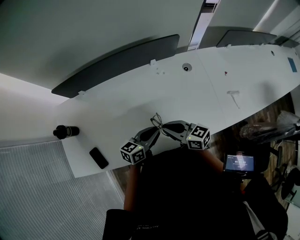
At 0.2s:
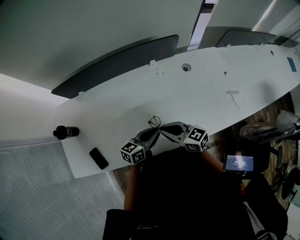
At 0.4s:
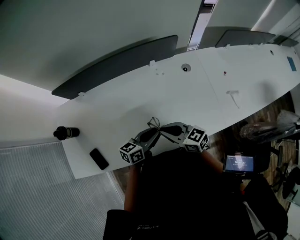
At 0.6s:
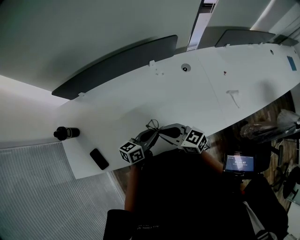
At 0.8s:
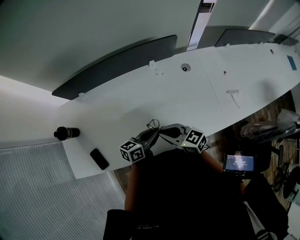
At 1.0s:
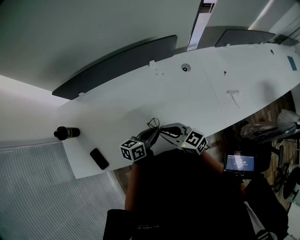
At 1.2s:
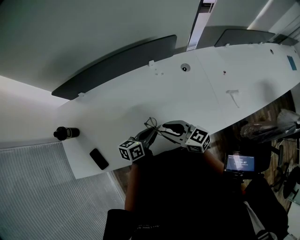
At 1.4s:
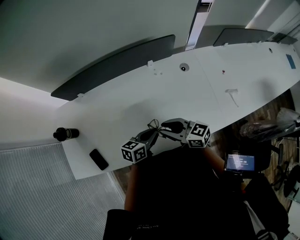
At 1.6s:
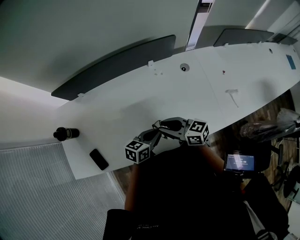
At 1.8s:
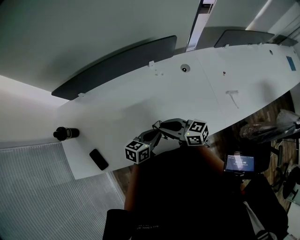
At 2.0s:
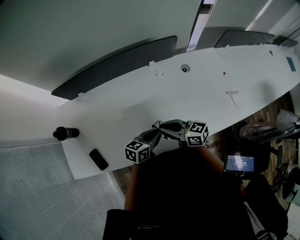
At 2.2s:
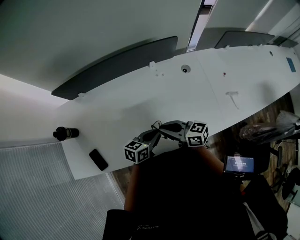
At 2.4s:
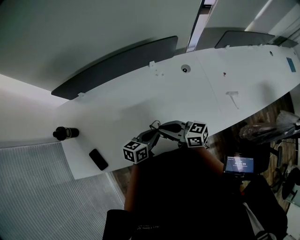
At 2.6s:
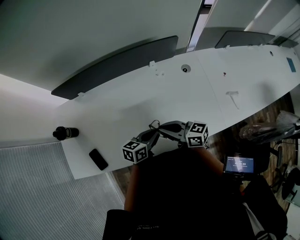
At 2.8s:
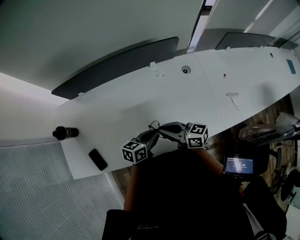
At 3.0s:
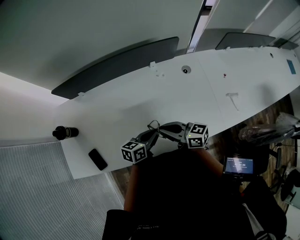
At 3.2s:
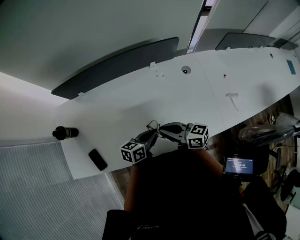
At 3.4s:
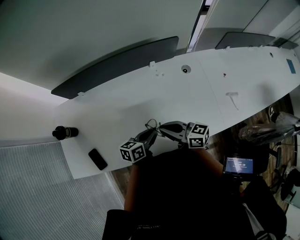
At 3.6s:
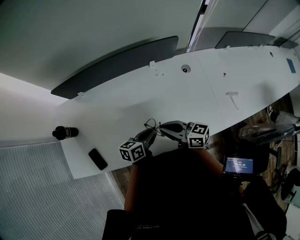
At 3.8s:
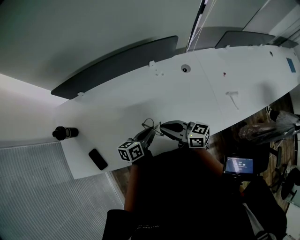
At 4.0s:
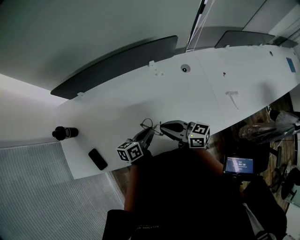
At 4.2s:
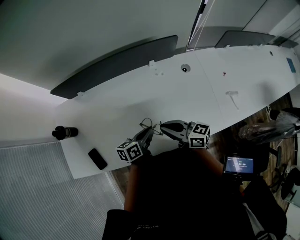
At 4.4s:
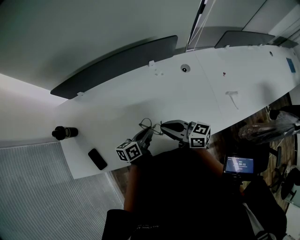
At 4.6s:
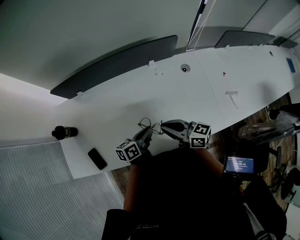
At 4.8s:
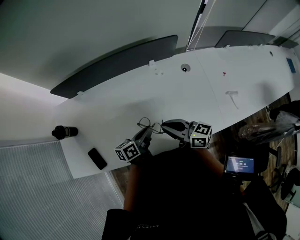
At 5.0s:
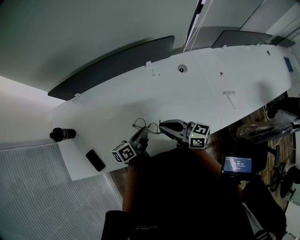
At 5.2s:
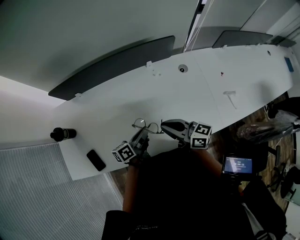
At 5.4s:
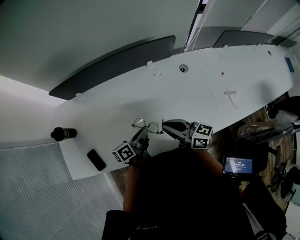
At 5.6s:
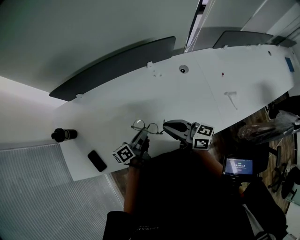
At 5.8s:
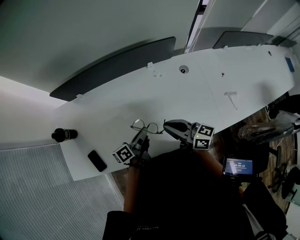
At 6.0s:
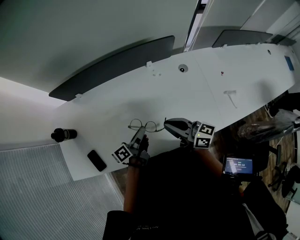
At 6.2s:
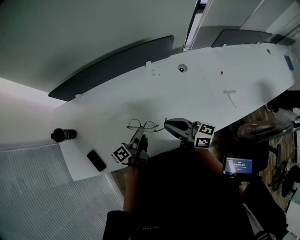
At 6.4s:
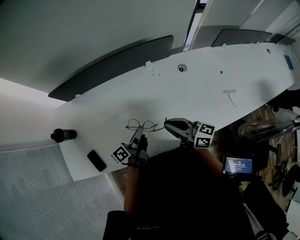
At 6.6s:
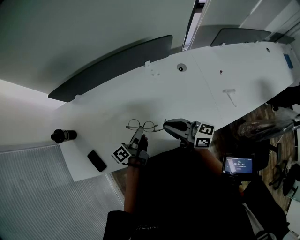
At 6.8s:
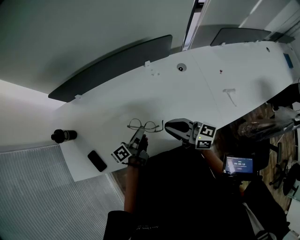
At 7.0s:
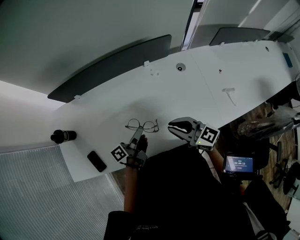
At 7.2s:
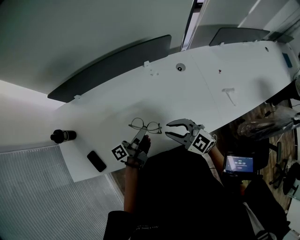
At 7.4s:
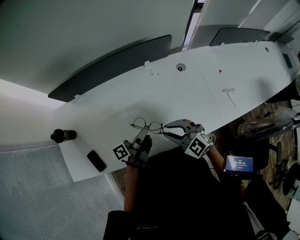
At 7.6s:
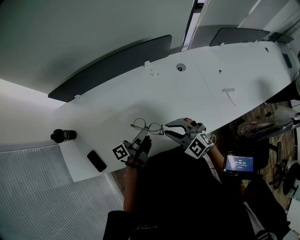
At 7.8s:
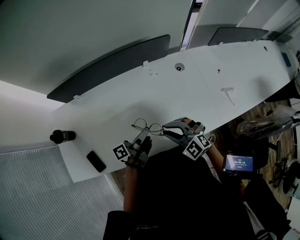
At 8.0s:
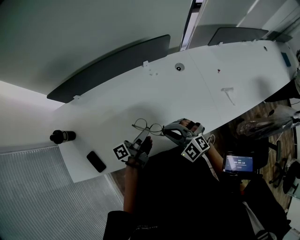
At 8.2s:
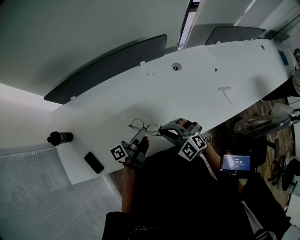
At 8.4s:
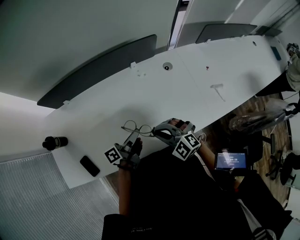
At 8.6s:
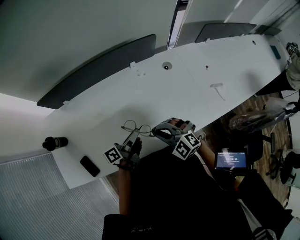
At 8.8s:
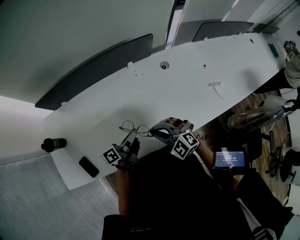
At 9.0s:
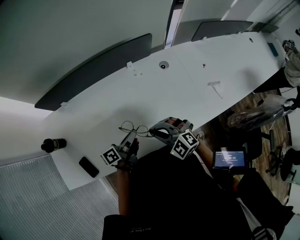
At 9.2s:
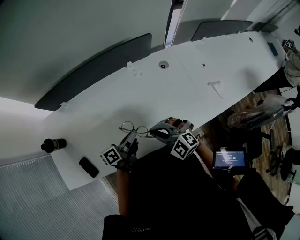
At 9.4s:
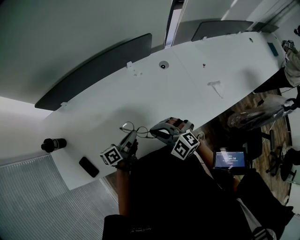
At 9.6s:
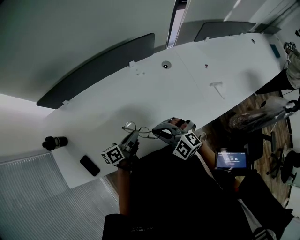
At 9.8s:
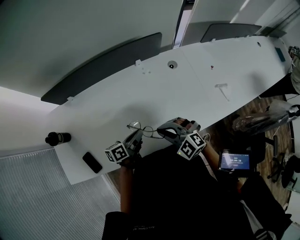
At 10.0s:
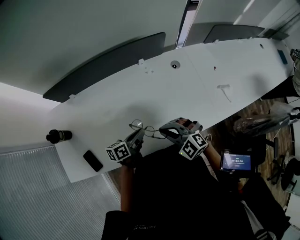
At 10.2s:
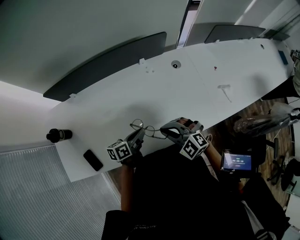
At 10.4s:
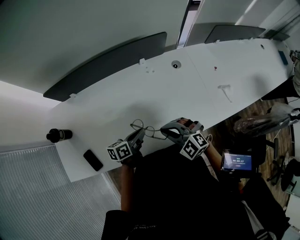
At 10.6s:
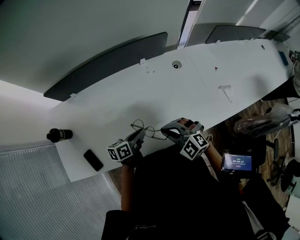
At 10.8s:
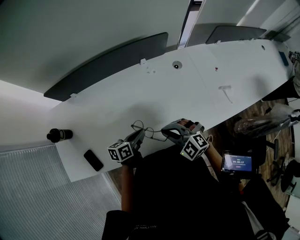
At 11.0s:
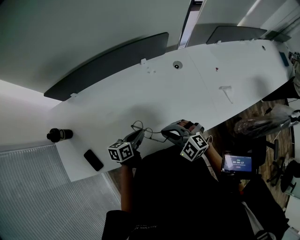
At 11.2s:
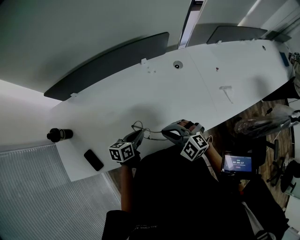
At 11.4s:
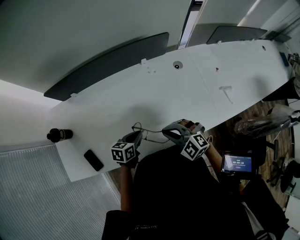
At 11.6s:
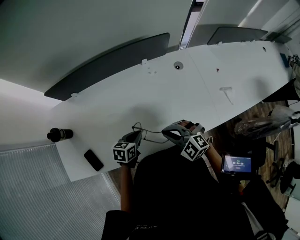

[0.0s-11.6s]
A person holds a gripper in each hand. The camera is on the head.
0.0s to 1.4s: There are only small adjustments of the grippers.
1.4s to 2.8s: The right gripper closes.
2.8s to 4.4s: There are only small adjustments of the grippers.
4.4s to 5.8s: The left gripper changes its angle by roughly 20 degrees.
5.8s to 7.2s: The right gripper changes place by about 5 cm, and rolls counterclockwise, seen from behind, by roughly 50 degrees.
7.2s to 8.8s: The right gripper turns by about 20 degrees.
8.8s to 10.2s: The left gripper swivels approximately 30 degrees.
10.2s to 11.6s: The left gripper swivels some 30 degrees.

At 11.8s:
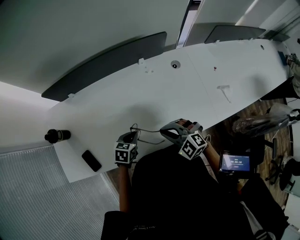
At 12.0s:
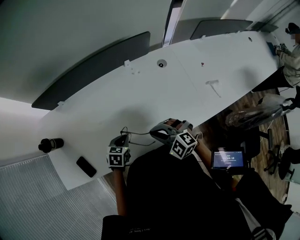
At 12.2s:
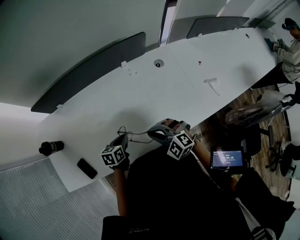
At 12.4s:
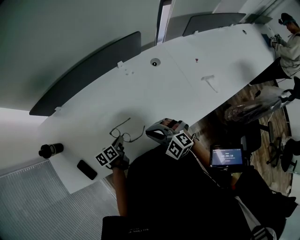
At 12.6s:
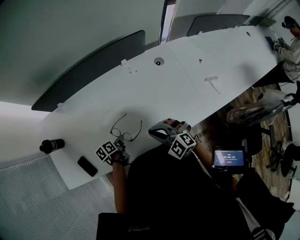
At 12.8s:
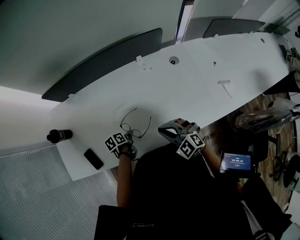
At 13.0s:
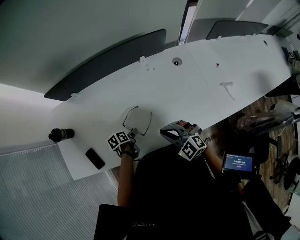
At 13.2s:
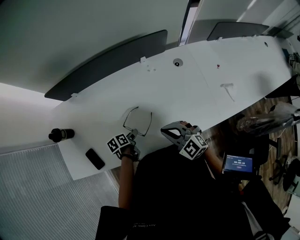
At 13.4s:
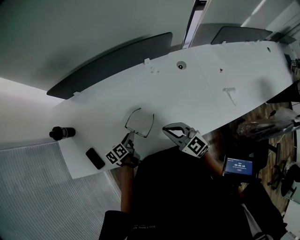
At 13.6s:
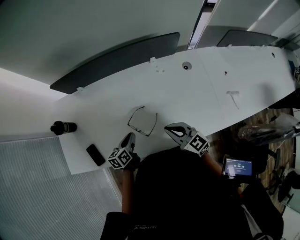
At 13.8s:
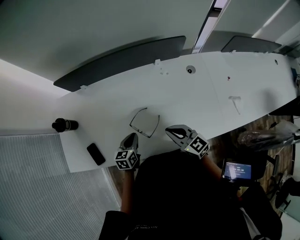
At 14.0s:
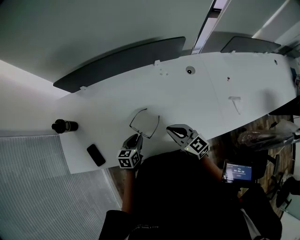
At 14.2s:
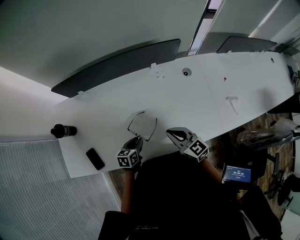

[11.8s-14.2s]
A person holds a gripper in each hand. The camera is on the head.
11.8s to 13.0s: The left gripper shifts roughly 10 cm downward, rotates around the line of its fingers by roughly 50 degrees, counterclockwise from behind, and opens up.
13.0s to 14.2s: The left gripper goes approximately 5 cm upward, and turns by roughly 40 degrees. The right gripper rotates about 40 degrees.

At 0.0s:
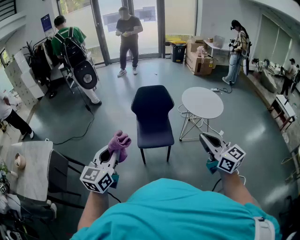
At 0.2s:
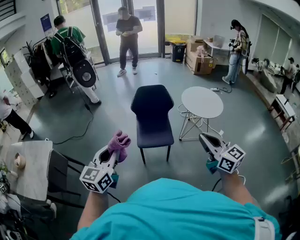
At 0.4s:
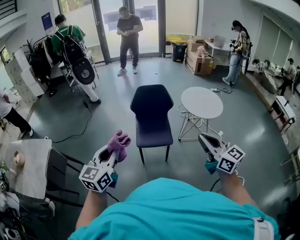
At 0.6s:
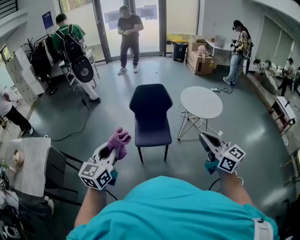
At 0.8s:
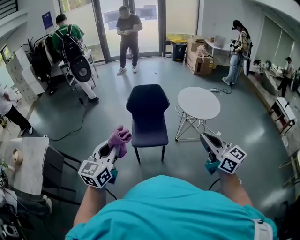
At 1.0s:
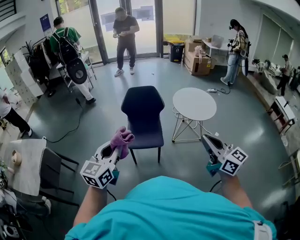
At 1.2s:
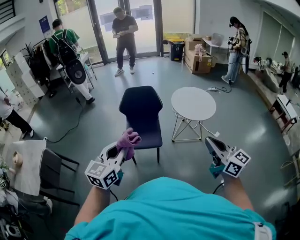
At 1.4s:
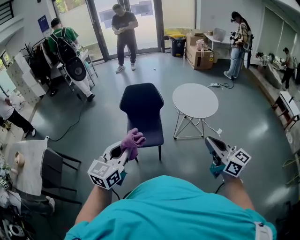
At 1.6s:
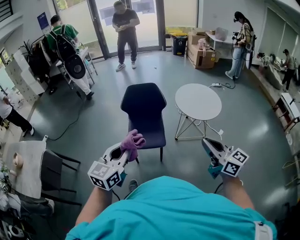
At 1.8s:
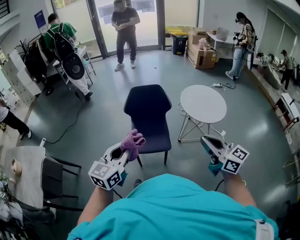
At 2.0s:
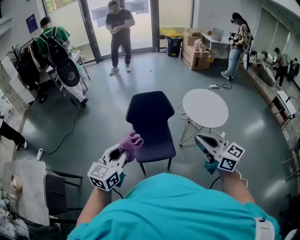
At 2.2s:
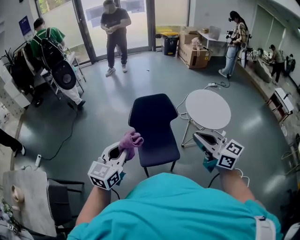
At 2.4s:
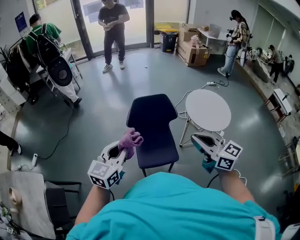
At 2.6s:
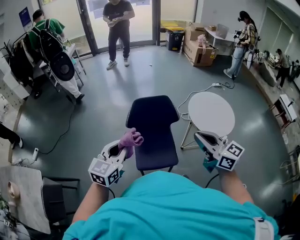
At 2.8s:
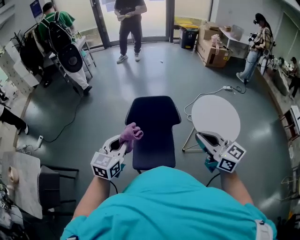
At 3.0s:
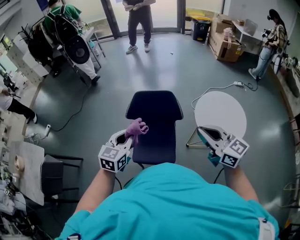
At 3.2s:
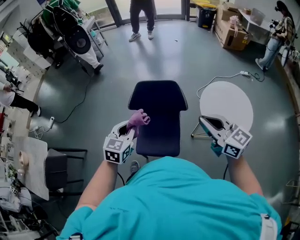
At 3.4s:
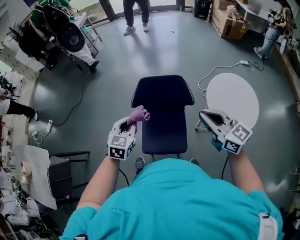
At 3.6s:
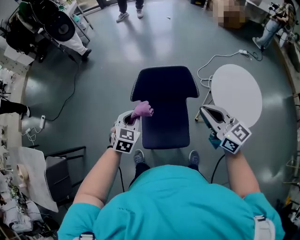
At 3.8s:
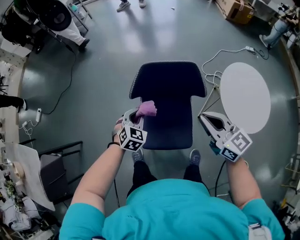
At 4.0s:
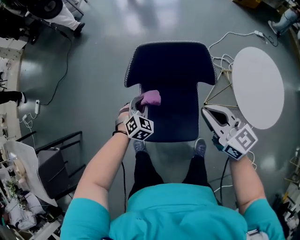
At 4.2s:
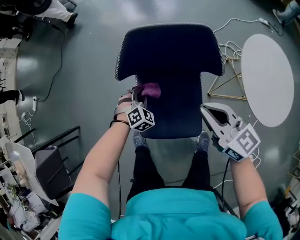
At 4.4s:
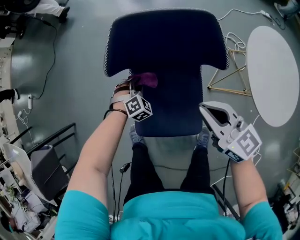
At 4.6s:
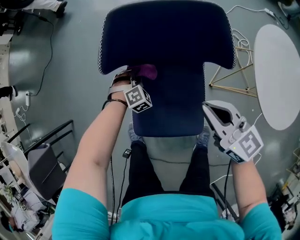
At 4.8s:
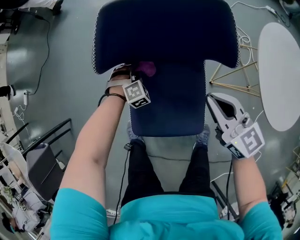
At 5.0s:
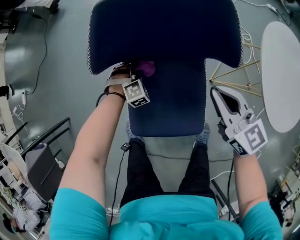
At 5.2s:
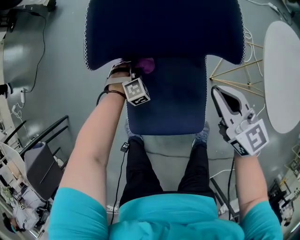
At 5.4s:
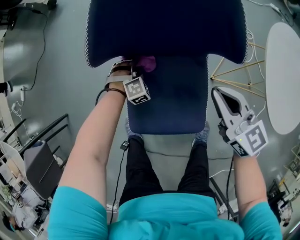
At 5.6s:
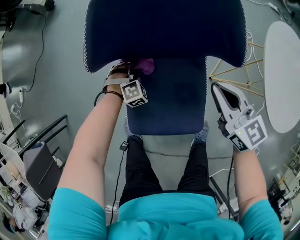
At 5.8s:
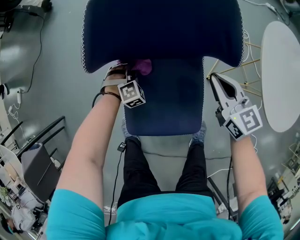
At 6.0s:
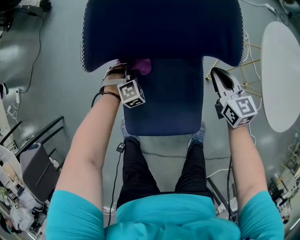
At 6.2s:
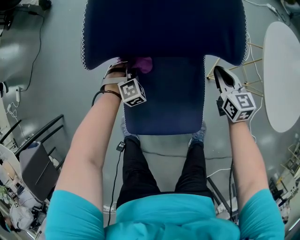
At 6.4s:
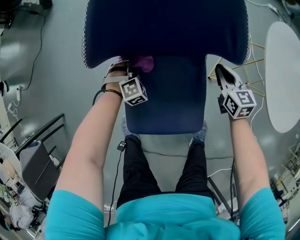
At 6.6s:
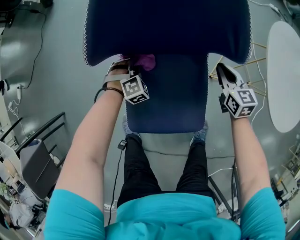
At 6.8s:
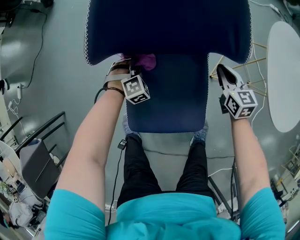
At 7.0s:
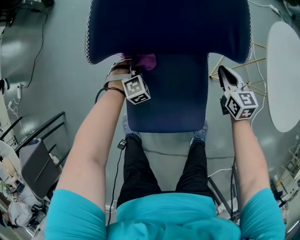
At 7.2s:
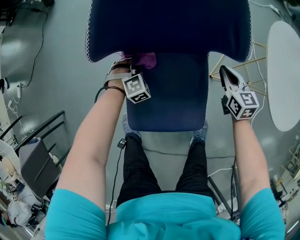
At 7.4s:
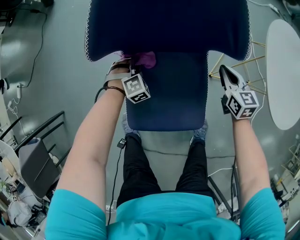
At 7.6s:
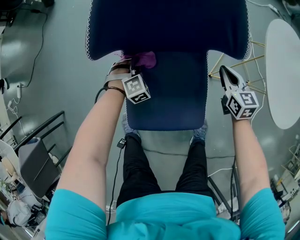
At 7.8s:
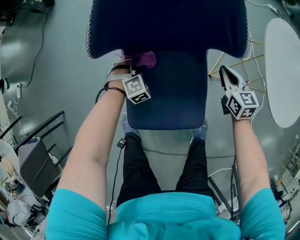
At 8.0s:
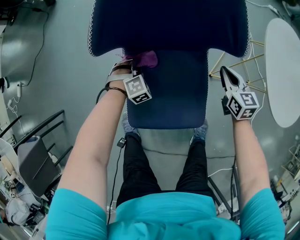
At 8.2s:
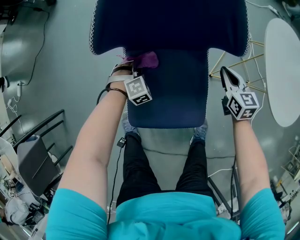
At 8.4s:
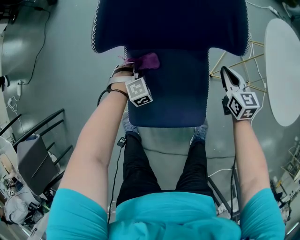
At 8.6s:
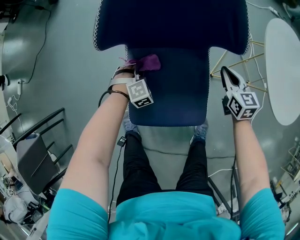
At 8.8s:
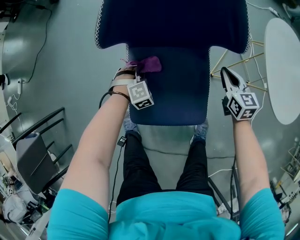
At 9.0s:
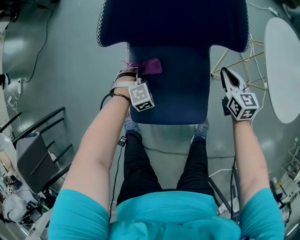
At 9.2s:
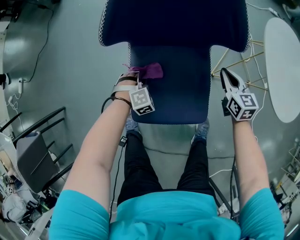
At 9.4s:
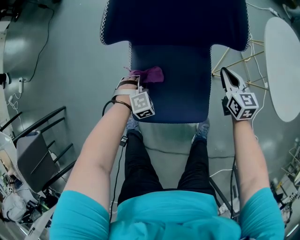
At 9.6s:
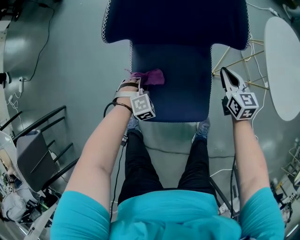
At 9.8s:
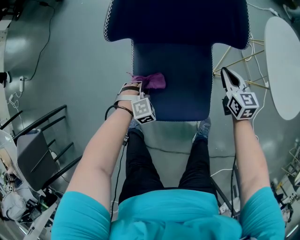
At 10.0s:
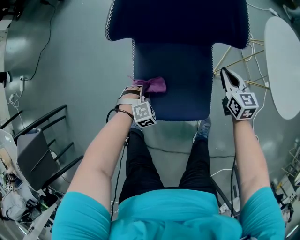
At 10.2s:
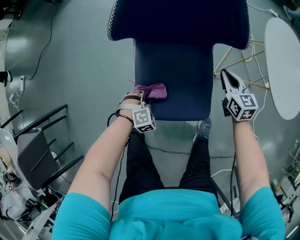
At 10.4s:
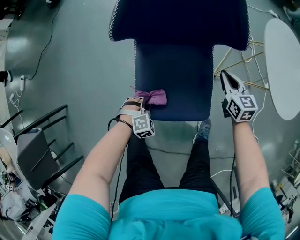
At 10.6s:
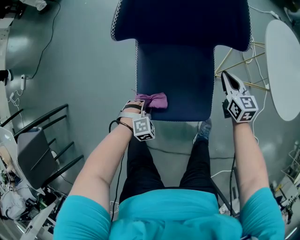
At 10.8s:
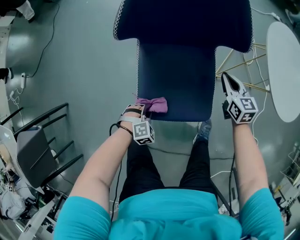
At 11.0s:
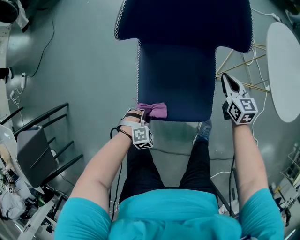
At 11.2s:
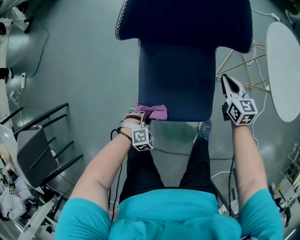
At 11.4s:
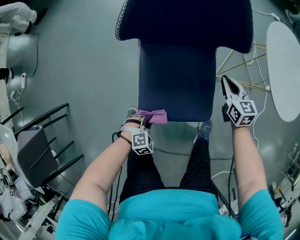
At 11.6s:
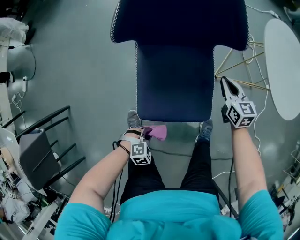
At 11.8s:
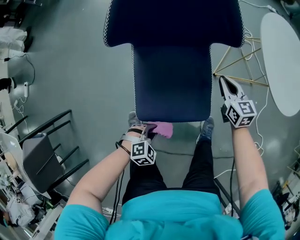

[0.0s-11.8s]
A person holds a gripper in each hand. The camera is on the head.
0.0s to 1.4s: Both grippers move to the right, roughly 20 cm.
1.4s to 3.0s: Both grippers are carried forward, some 40 cm.
3.0s to 4.4s: The right gripper heads downward and forward, covering some 40 cm. The left gripper goes some 50 cm downward, and rotates around the line of its fingers by approximately 50 degrees, clockwise from behind.
4.4s to 6.0s: The right gripper heads downward and to the right, covering approximately 25 cm, and turns by some 20 degrees. The left gripper is displaced downward by approximately 10 cm.
6.0s to 7.4s: The right gripper changes place by roughly 5 cm.
7.4s to 8.8s: The left gripper shifts roughly 5 cm backward.
8.8s to 10.4s: The left gripper goes some 15 cm backward.
10.4s to 11.8s: The left gripper shifts by some 15 cm.
